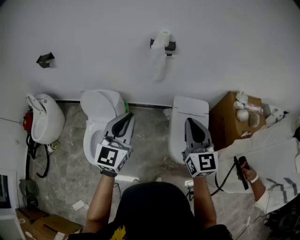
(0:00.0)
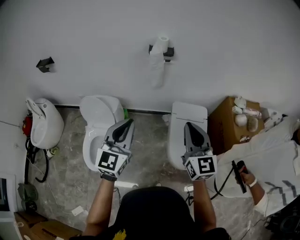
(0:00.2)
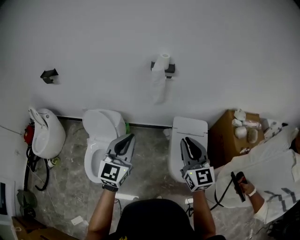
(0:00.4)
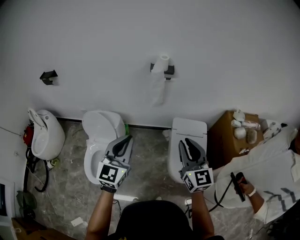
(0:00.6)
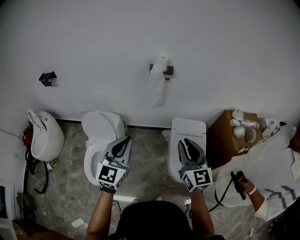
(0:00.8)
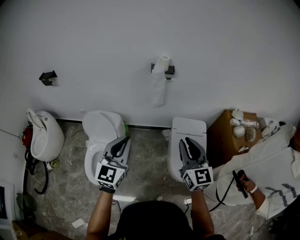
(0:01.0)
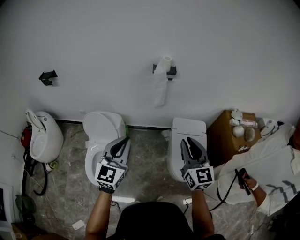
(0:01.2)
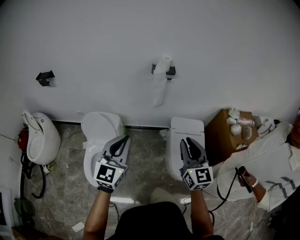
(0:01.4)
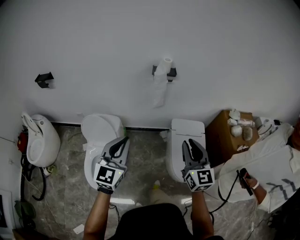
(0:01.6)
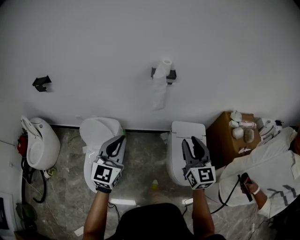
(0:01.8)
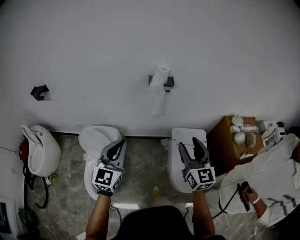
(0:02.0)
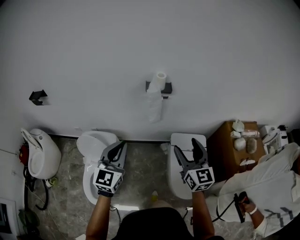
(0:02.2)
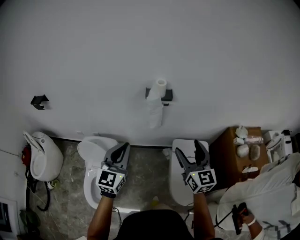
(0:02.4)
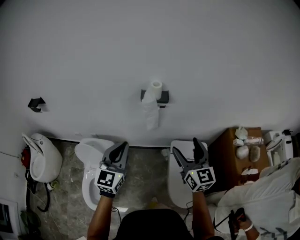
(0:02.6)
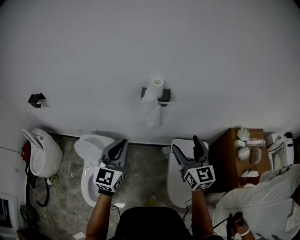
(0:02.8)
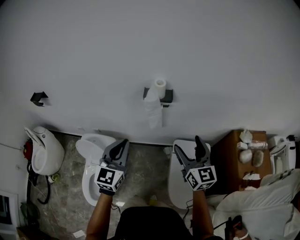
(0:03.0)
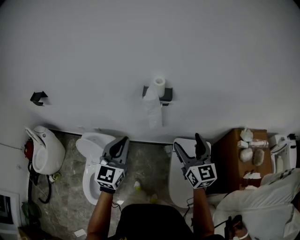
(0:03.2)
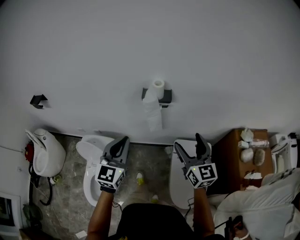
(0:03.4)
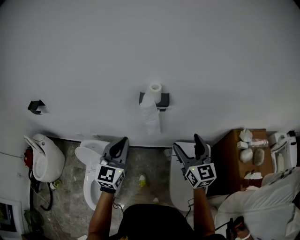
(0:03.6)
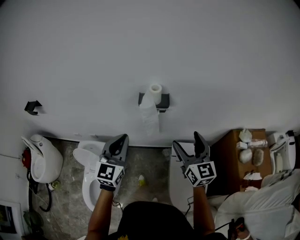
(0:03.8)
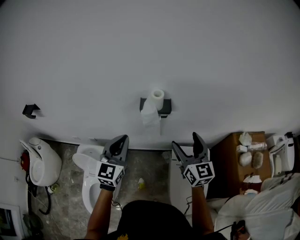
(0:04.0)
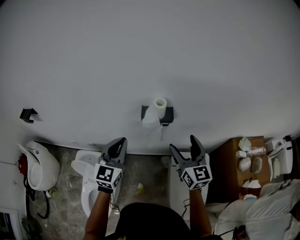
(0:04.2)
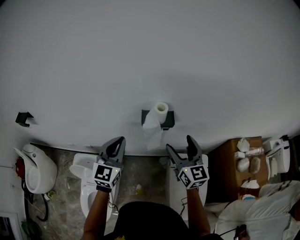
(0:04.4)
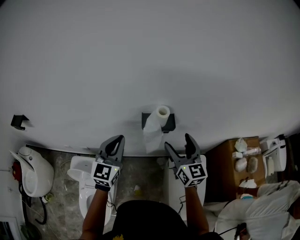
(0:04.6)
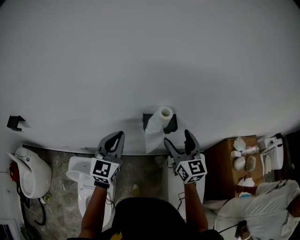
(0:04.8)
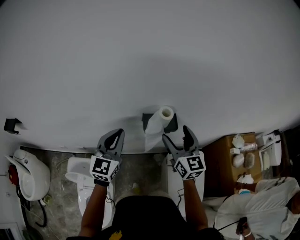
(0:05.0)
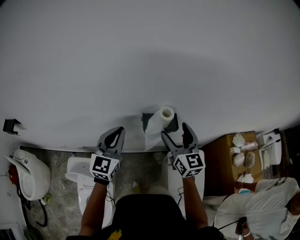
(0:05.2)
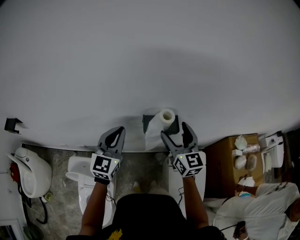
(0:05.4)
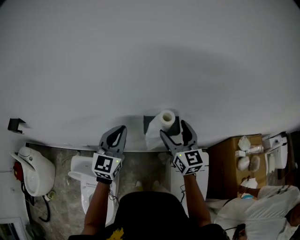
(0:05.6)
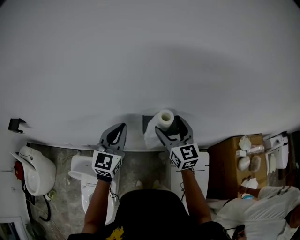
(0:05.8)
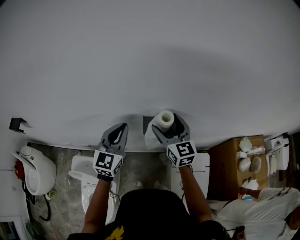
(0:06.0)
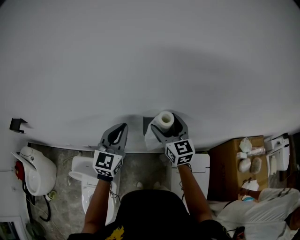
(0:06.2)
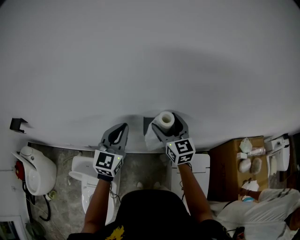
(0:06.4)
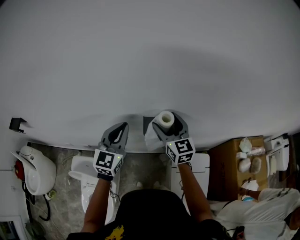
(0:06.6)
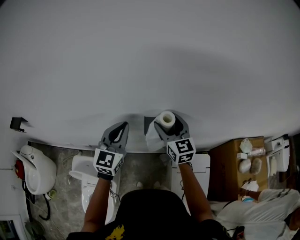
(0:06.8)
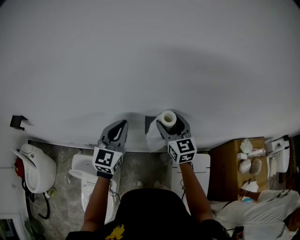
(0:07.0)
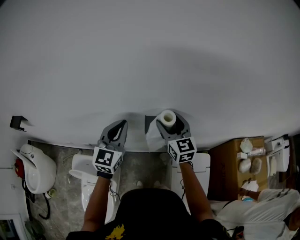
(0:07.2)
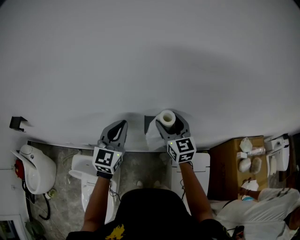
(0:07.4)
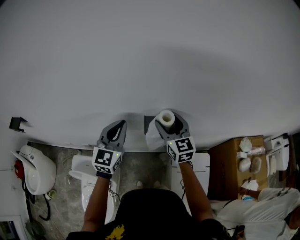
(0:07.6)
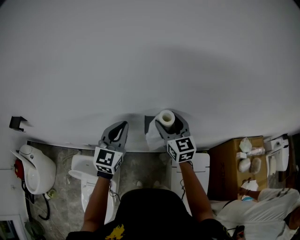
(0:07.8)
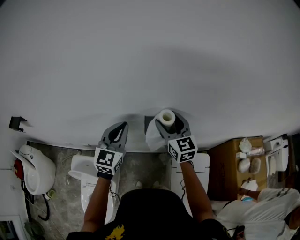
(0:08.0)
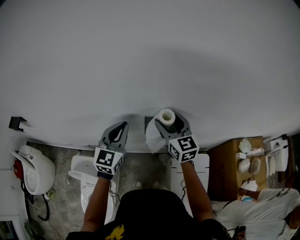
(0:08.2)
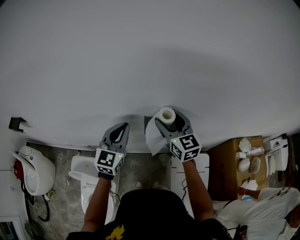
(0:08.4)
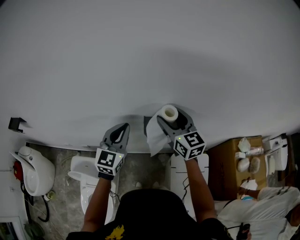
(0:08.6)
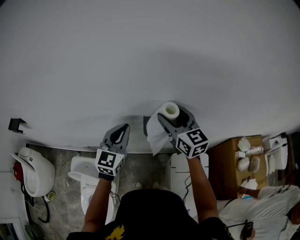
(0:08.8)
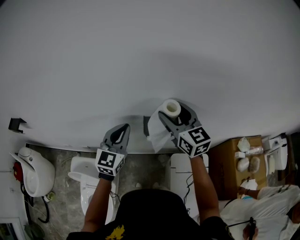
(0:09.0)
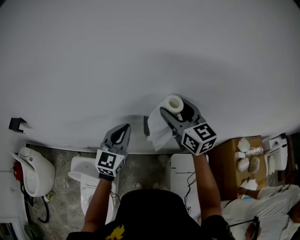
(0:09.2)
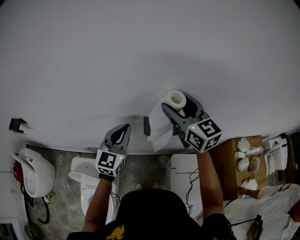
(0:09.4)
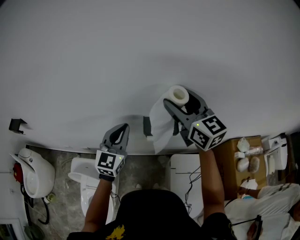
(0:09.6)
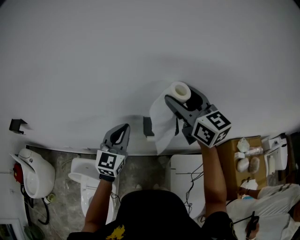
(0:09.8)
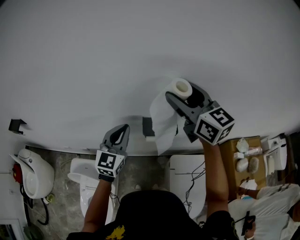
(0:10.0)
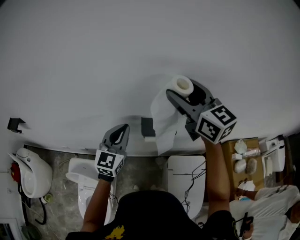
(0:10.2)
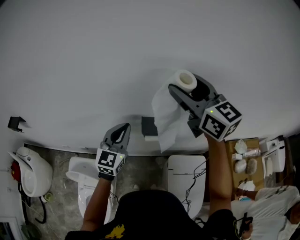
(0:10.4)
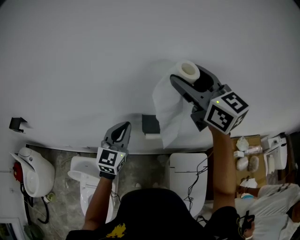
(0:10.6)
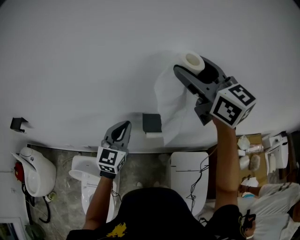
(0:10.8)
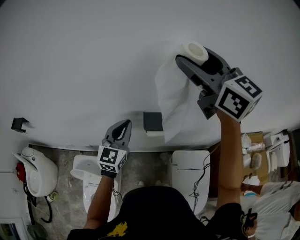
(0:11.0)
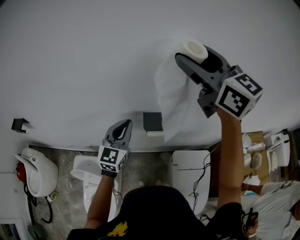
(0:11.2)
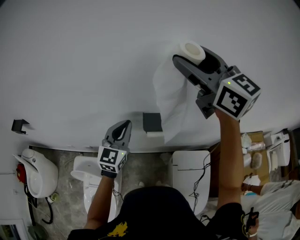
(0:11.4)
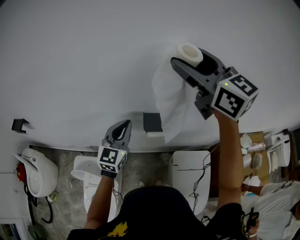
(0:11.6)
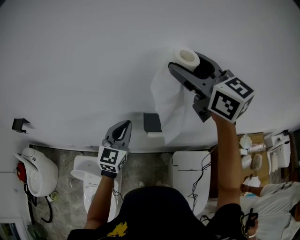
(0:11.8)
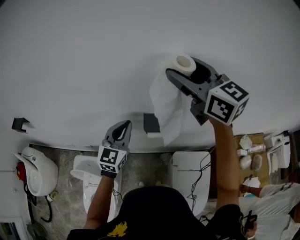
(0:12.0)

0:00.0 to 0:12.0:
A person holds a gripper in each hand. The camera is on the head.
0:00.0 to 0:01.6: The right gripper is displaced to the left by roughly 5 cm, while the left gripper is displaced to the left by about 10 cm.
0:01.6 to 0:03.0: The grippers both shift forward by about 25 cm. The right gripper opens its fingers.
0:03.0 to 0:04.4: Both grippers move forward, about 15 cm.
0:04.4 to 0:06.0: The left gripper heads forward, covering roughly 10 cm, while the right gripper goes about 15 cm forward and to the left.
0:06.0 to 0:07.6: The grippers stay close to where they were, moving slightly.
0:07.6 to 0:09.0: The right gripper moves upward, about 10 cm.
0:09.0 to 0:10.4: The right gripper shifts approximately 15 cm upward.

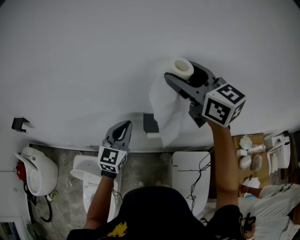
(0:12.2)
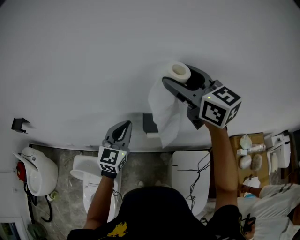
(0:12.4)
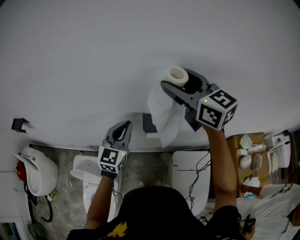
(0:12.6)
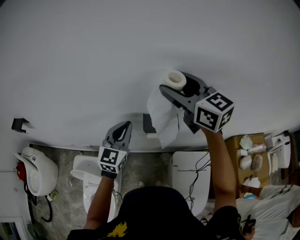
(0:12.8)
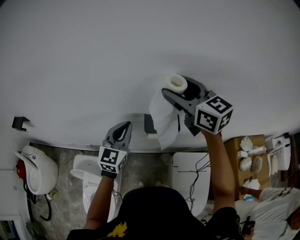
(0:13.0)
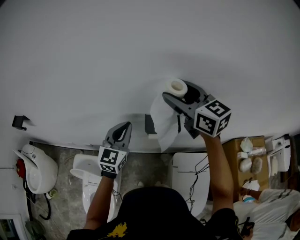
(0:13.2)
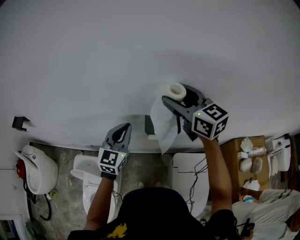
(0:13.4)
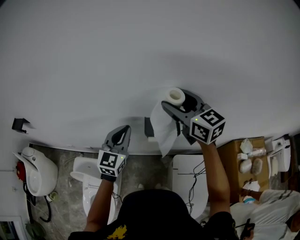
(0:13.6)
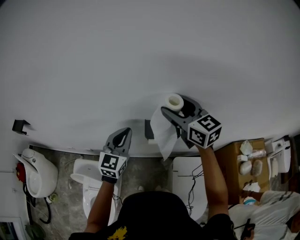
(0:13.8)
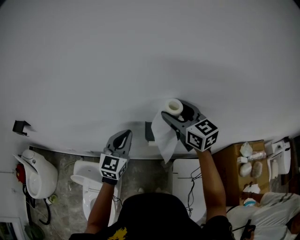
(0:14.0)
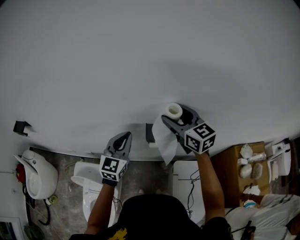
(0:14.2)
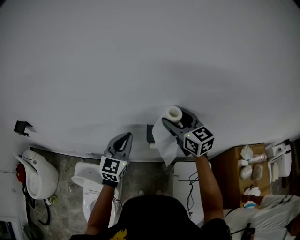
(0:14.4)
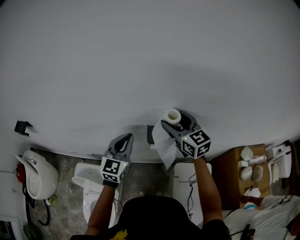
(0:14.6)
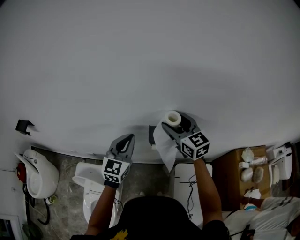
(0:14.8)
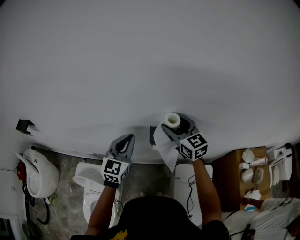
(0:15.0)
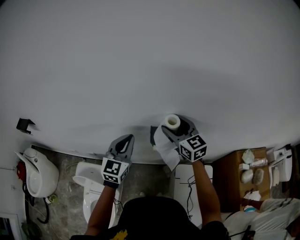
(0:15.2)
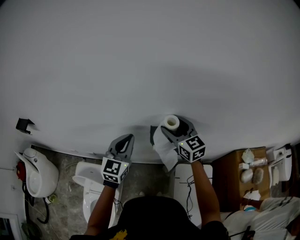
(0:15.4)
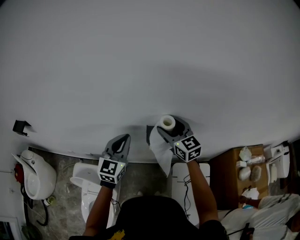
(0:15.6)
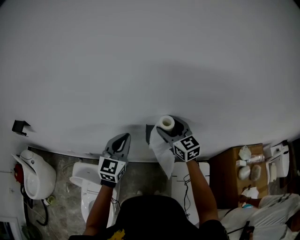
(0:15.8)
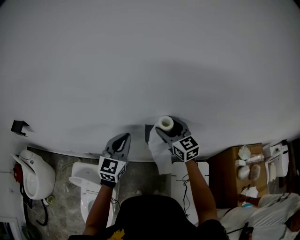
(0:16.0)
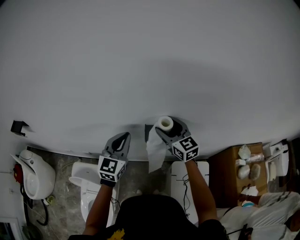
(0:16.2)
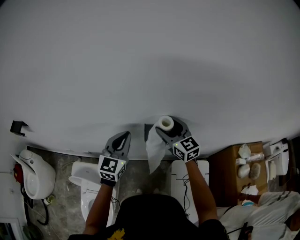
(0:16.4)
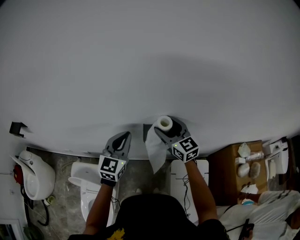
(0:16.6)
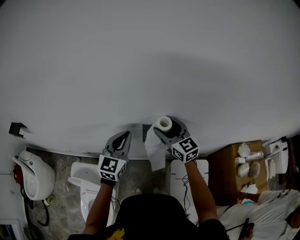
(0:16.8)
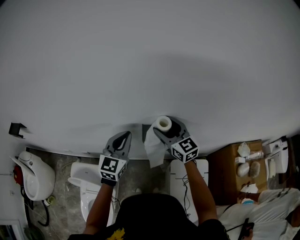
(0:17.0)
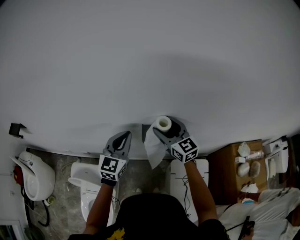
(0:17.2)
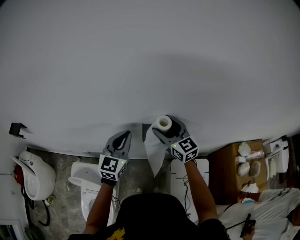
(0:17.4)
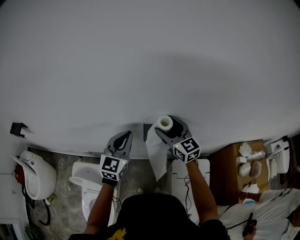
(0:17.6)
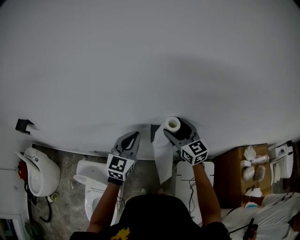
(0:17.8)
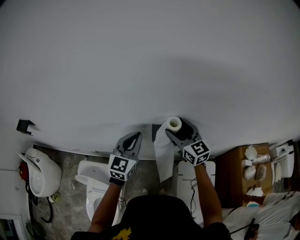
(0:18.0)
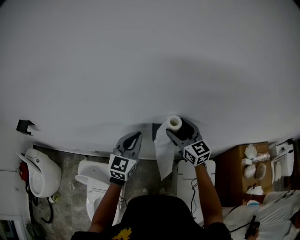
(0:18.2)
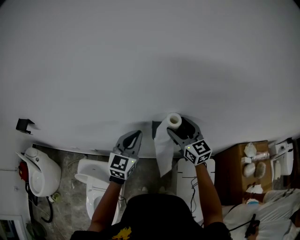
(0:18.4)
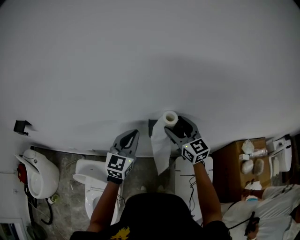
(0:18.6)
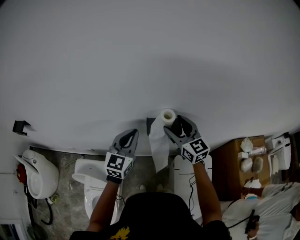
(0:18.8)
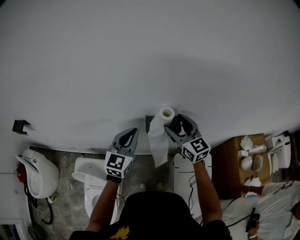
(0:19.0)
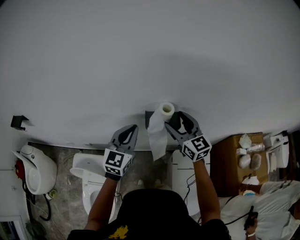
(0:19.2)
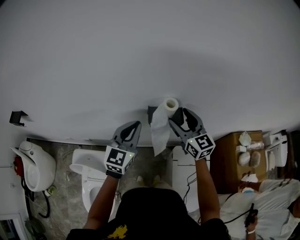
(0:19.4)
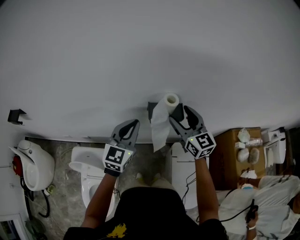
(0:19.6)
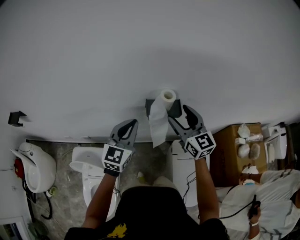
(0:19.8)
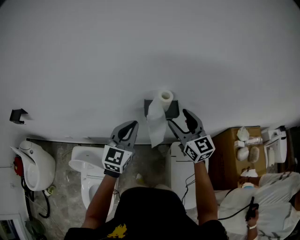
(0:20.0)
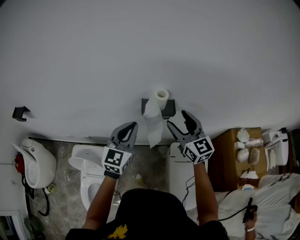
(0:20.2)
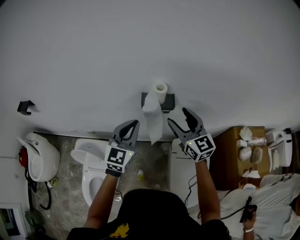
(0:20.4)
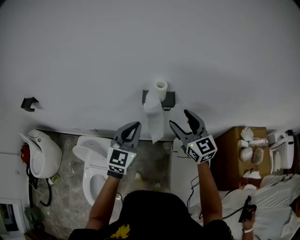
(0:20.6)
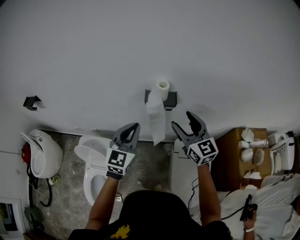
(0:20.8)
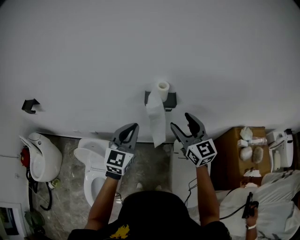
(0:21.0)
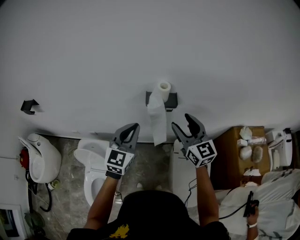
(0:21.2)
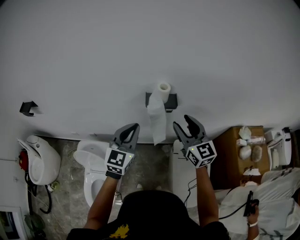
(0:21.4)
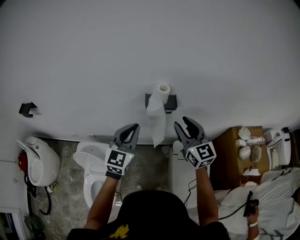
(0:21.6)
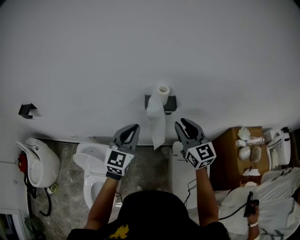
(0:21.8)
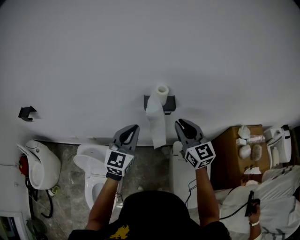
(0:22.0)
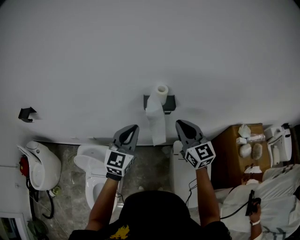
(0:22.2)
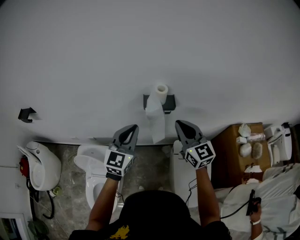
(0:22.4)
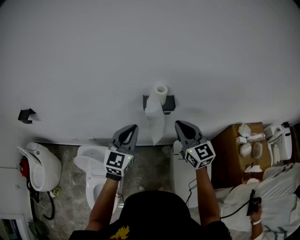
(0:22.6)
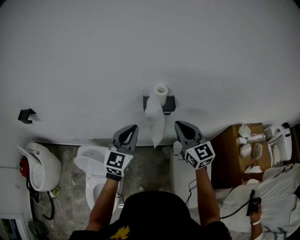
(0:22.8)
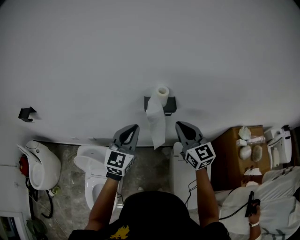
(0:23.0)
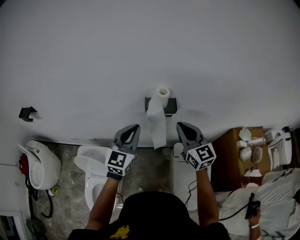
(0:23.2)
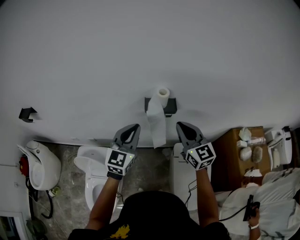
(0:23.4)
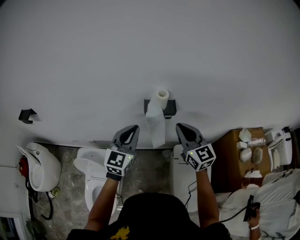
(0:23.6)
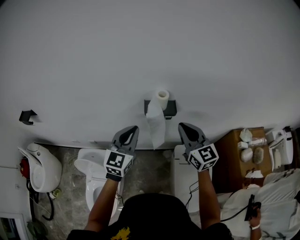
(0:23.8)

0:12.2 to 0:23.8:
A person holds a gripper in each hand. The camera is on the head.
0:12.2 to 0:13.6: The right gripper heads downward, covering about 10 cm.
0:13.6 to 0:15.0: The right gripper moves downward, approximately 10 cm.
0:15.0 to 0:18.0: The grippers make only small movements.
0:18.0 to 0:19.4: The right gripper moves approximately 5 cm.
0:19.4 to 0:21.0: The grippers both shift backward by some 15 cm.
0:21.0 to 0:22.4: The right gripper closes up.
0:22.4 to 0:23.8: The grippers make only small movements.

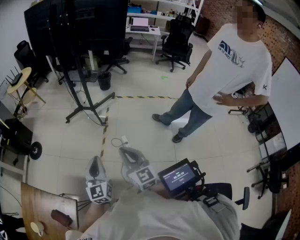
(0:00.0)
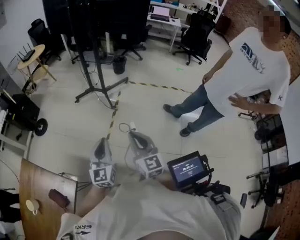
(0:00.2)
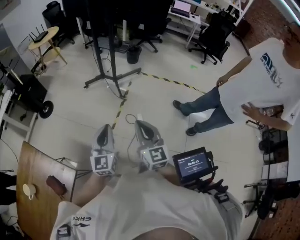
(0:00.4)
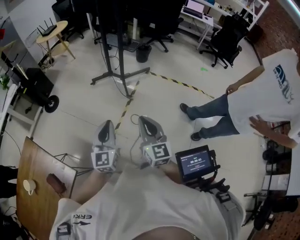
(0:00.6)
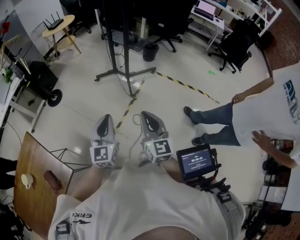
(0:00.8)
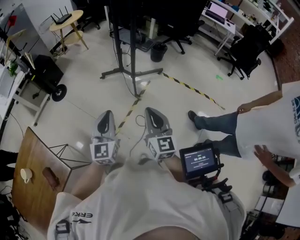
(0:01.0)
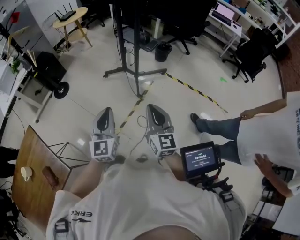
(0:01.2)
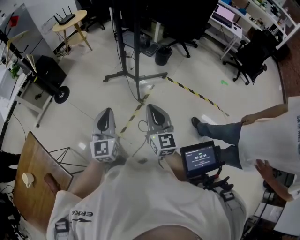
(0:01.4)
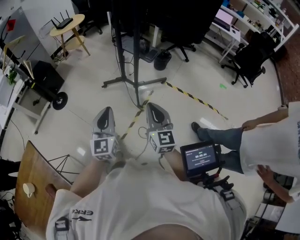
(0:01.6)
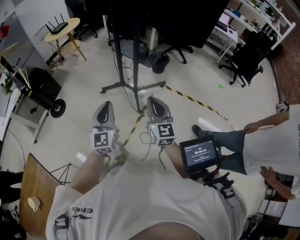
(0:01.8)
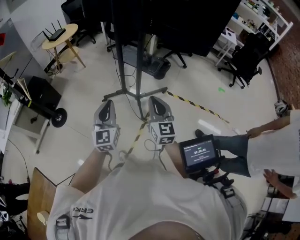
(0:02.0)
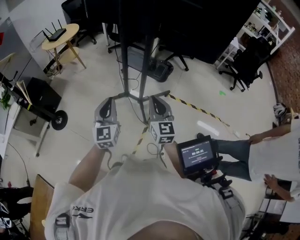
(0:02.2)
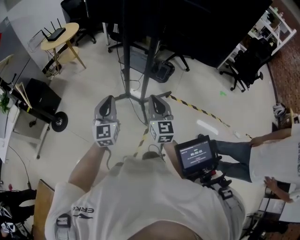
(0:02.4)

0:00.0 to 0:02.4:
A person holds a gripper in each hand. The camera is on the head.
0:00.0 to 0:01.2: The two grippers go roughly 25 cm forward.
0:01.2 to 0:02.4: Both grippers move forward, approximately 35 cm.
